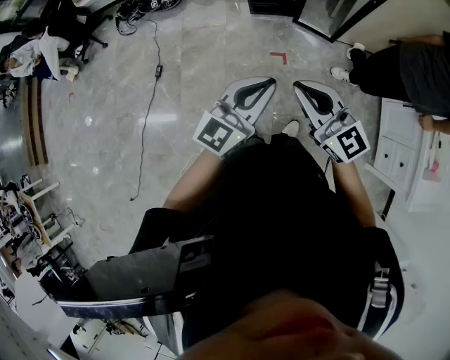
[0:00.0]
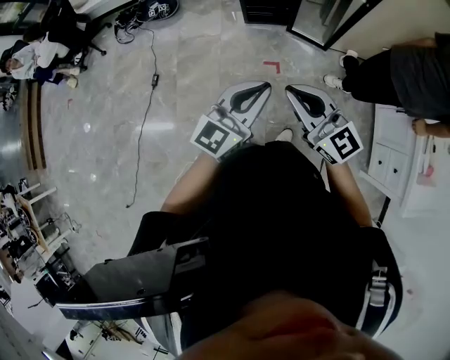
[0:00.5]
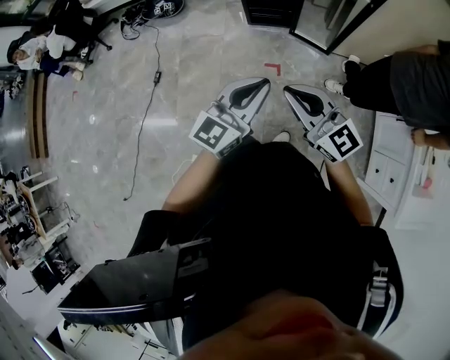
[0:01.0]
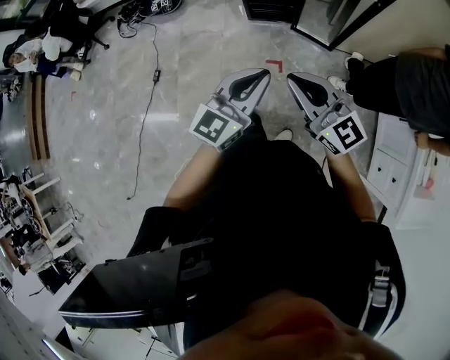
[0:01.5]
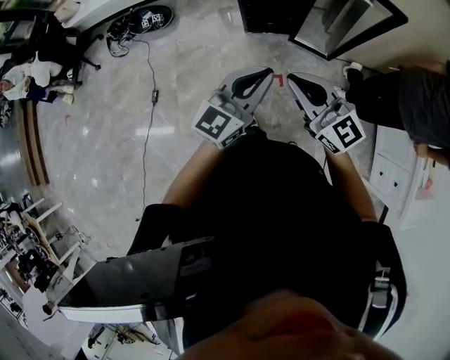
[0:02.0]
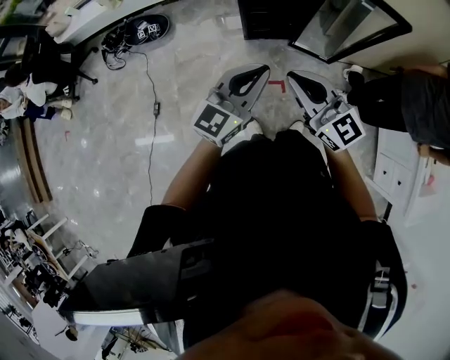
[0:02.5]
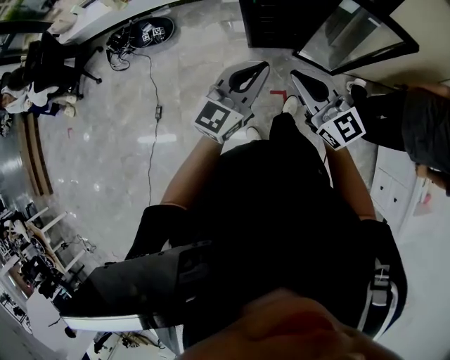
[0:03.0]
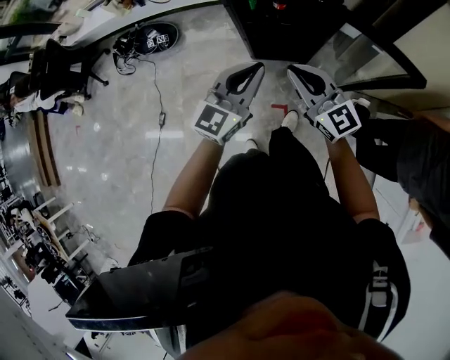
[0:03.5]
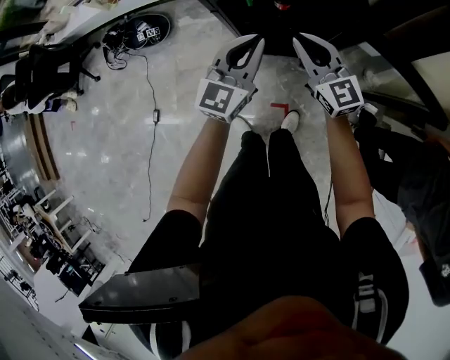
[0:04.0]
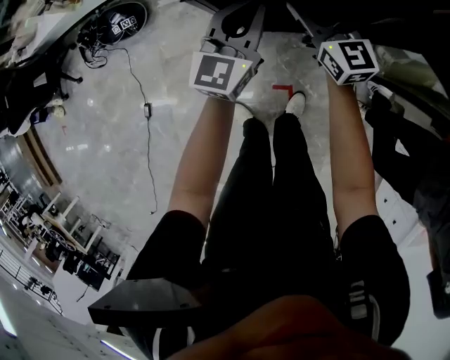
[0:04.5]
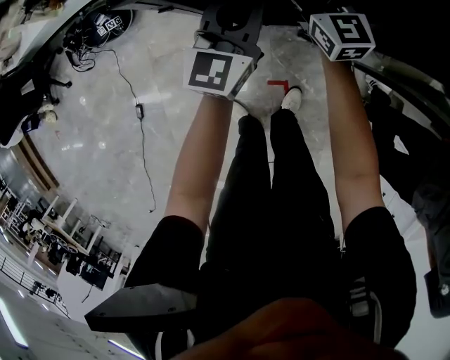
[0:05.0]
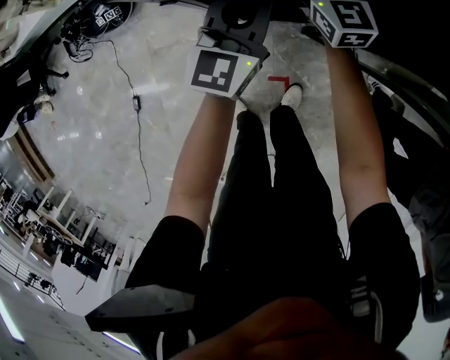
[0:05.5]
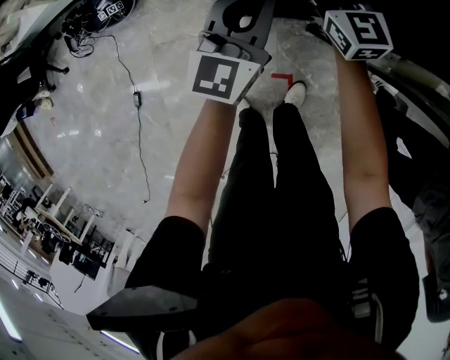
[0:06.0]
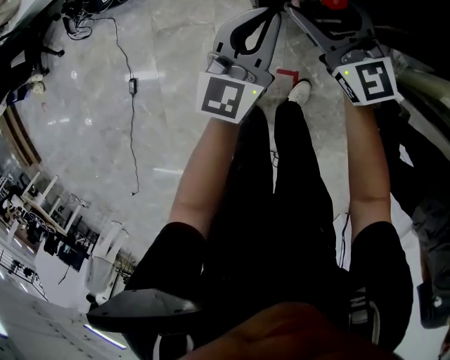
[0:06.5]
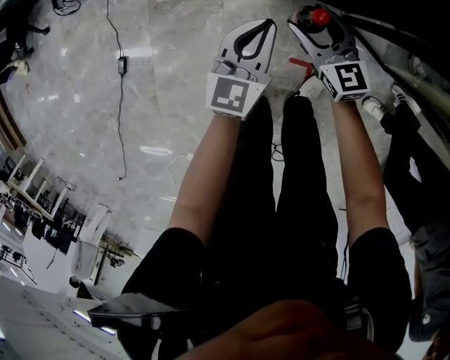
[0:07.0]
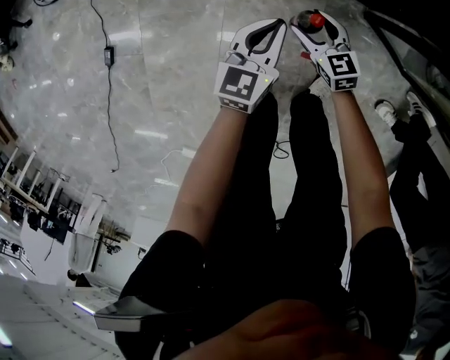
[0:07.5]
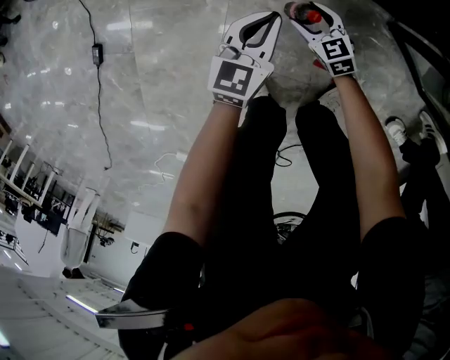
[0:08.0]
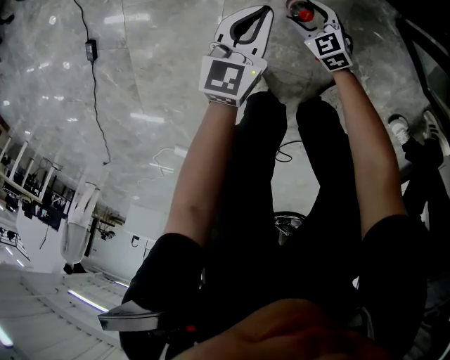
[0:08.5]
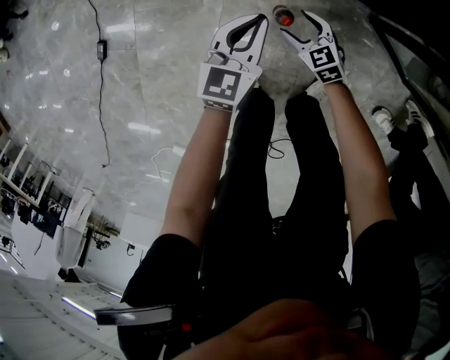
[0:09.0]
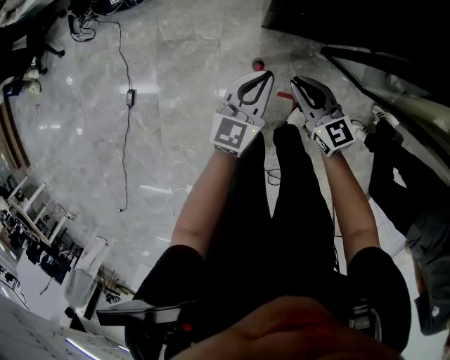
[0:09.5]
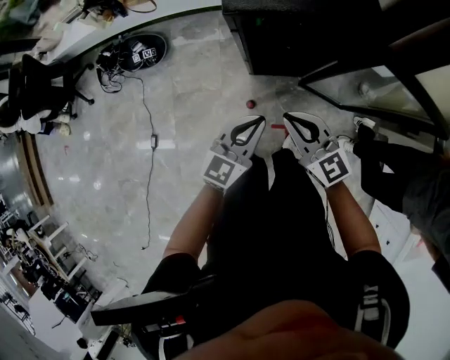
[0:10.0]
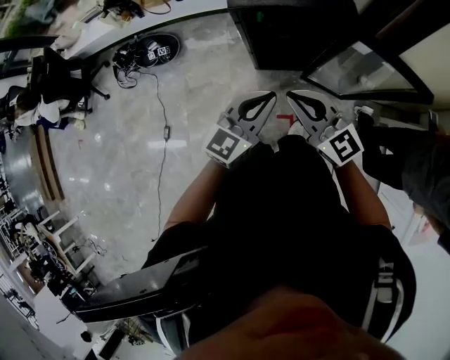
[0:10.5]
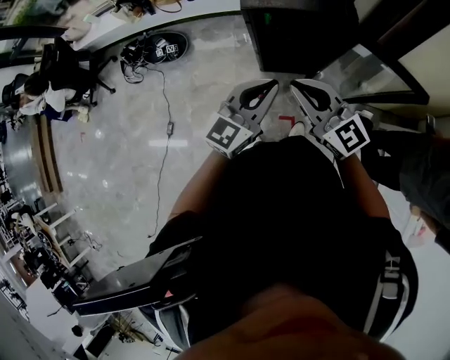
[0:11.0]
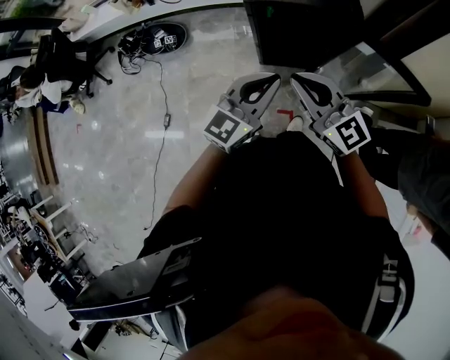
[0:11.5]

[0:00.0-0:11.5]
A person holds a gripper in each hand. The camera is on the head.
0:00.0 to 0:02.0: The grippers both shift forward by about 20 cm.
0:02.0 to 0:04.0: The two grippers travel together, forward, about 50 cm.
0:04.0 to 0:06.0: The left gripper goes approximately 15 cm downward and forward; the right gripper goes some 20 cm forward and downward, and opens.
0:06.0 to 0:07.5: The right gripper moves downward and backward, some 50 cm, and changes its angle by some 30 degrees. The left gripper moves downward and to the left, some 40 cm, and changes its angle by roughly 30 degrees.
0:07.5 to 0:09.5: Both grippers travel together upward, roughly 25 cm. The right gripper closes.
0:09.5 to 0:11.5: The two grippers go some 50 cm upward. The left gripper changes its angle by roughly 20 degrees; the right gripper changes its angle by approximately 30 degrees.

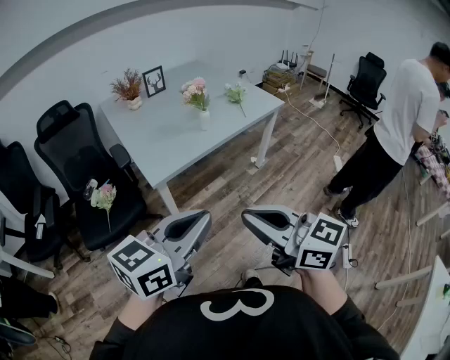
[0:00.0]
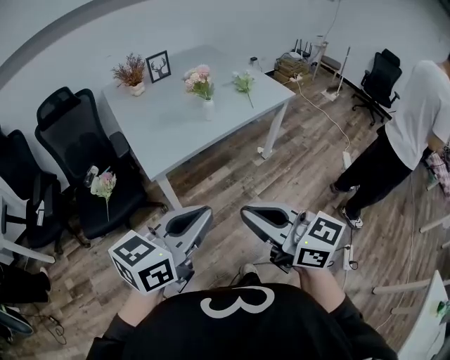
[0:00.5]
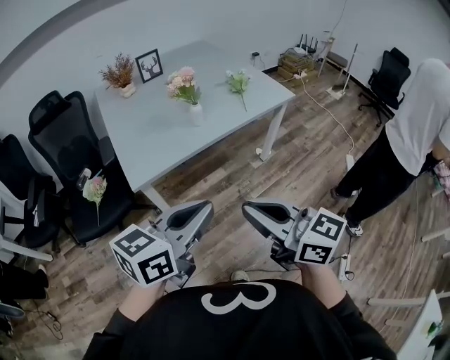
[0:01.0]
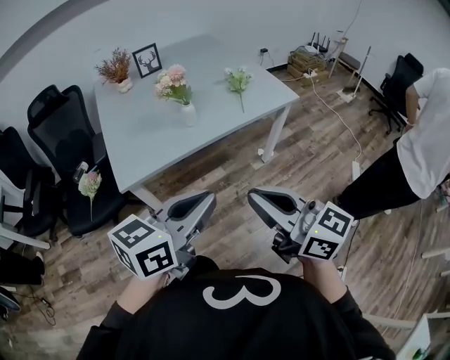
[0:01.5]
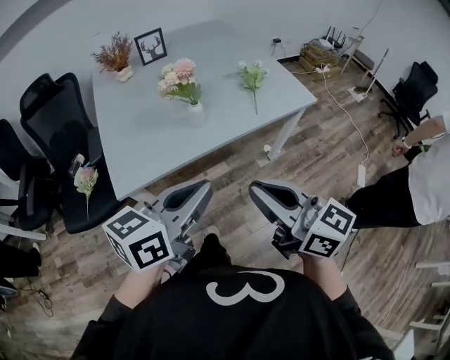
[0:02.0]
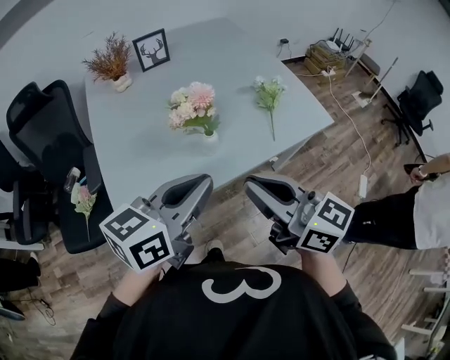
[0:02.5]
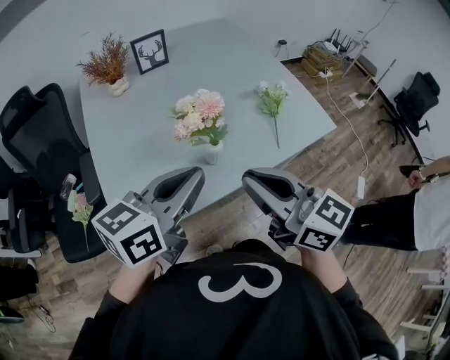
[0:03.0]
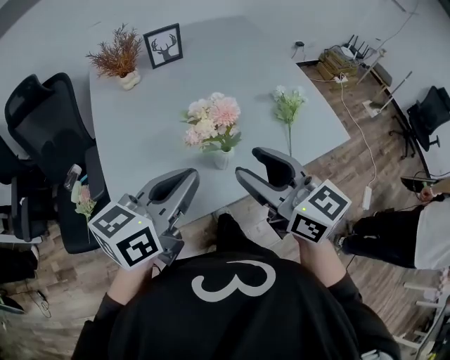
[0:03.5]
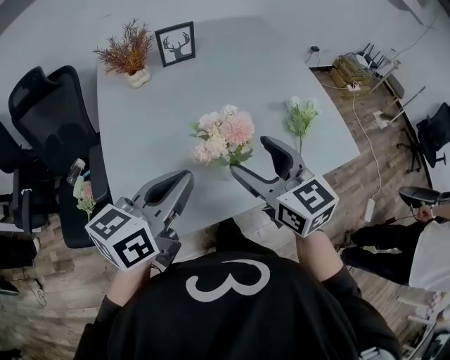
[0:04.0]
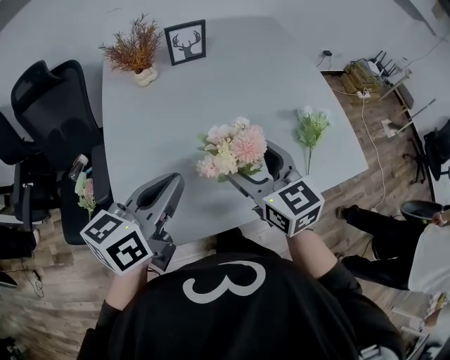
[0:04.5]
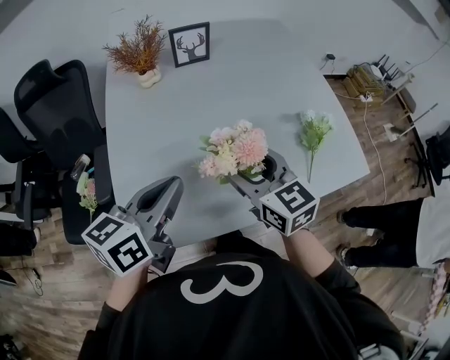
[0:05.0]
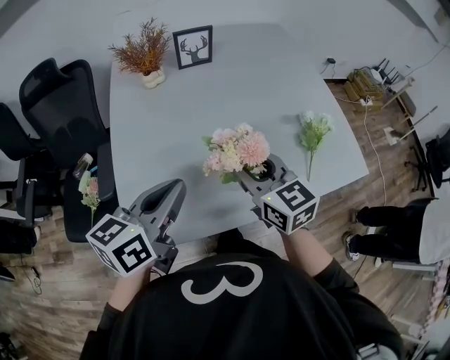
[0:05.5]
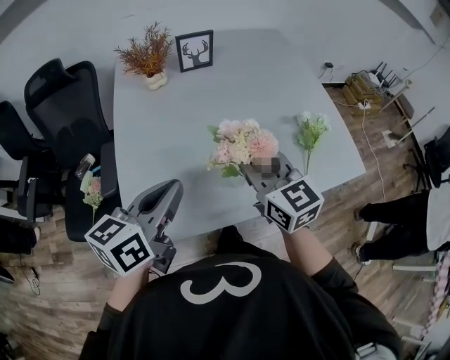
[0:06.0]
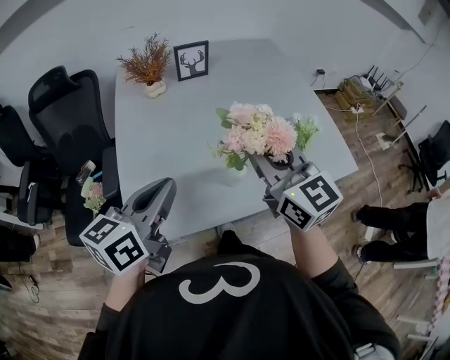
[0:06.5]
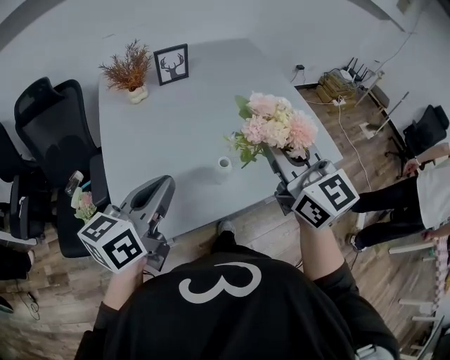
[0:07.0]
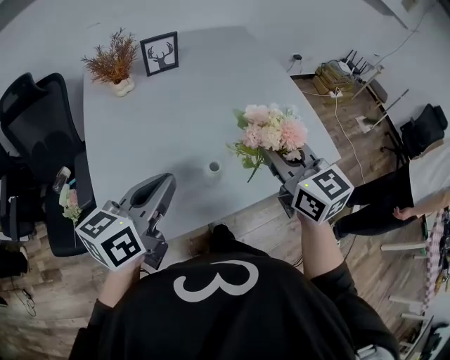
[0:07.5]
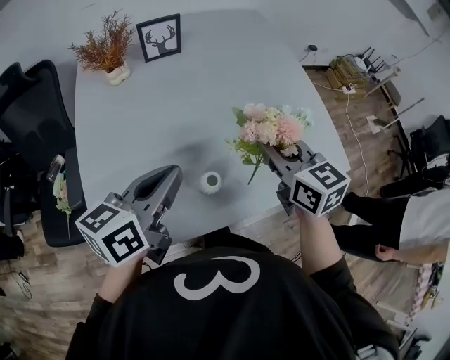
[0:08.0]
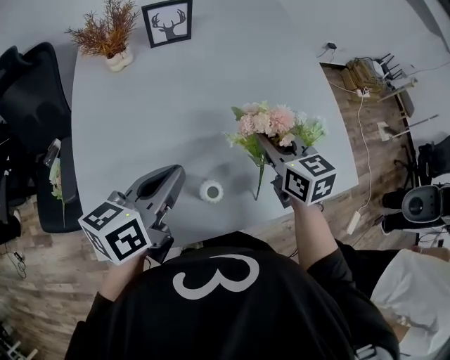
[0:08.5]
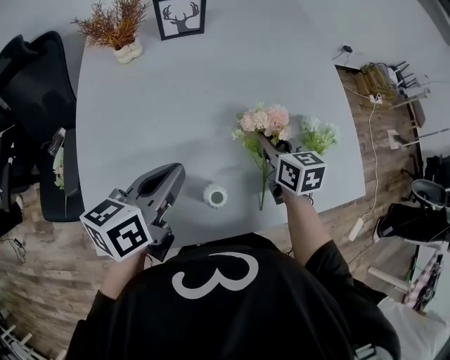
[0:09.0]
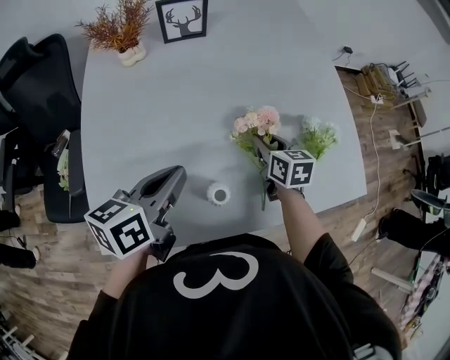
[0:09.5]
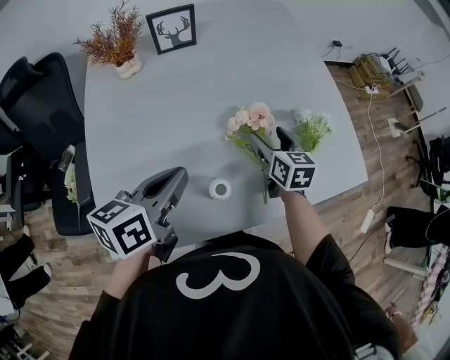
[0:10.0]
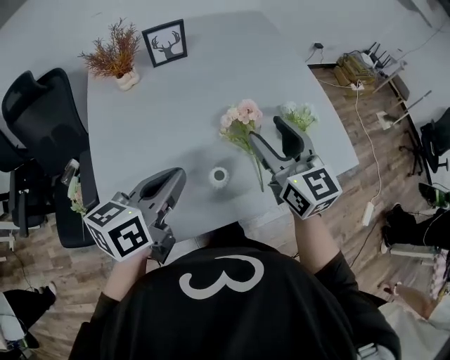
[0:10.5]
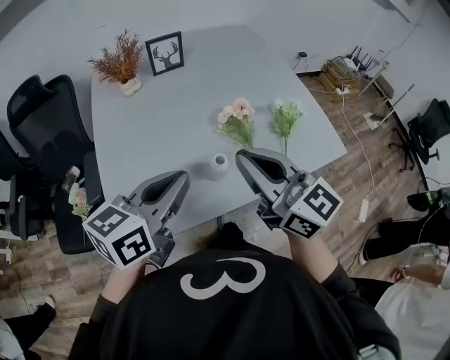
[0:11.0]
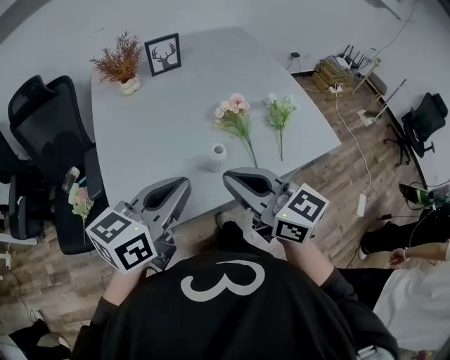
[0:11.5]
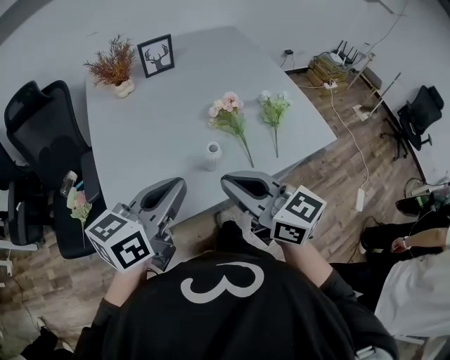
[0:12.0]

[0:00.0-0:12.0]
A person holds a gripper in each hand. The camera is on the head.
0:00.0 to 0:02.0: Both grippers move forward and to the right, about 35 cm.
0:02.0 to 0:04.0: The right gripper shifts about 35 cm forward, changes its angle by some 20 degrees, and opens its fingers, while the left gripper heads forward and to the left, covering some 30 cm.
0:04.0 to 0:06.0: The left gripper moves to the left, about 5 cm. Meanwhile the right gripper closes its fingers.
0:06.0 to 0:08.0: The left gripper goes approximately 10 cm forward and to the right; the right gripper is displaced to the right and forward by about 15 cm, and travels upward and back again, roughly 10 cm each way.
0:08.0 to 0:10.0: The left gripper changes place by some 5 cm. Meanwhile the right gripper moves downward and forward, about 20 cm, and opens.
0:10.0 to 0:12.0: The right gripper shifts roughly 35 cm backward and upward, swivels roughly 30 degrees, and closes. The left gripper shifts about 20 cm backward and upward.

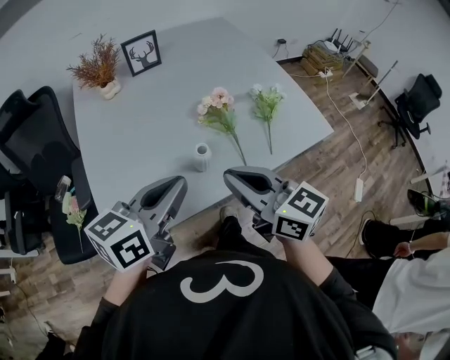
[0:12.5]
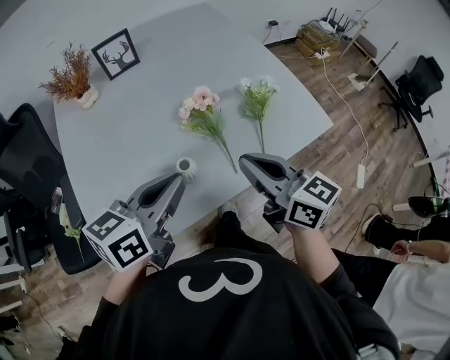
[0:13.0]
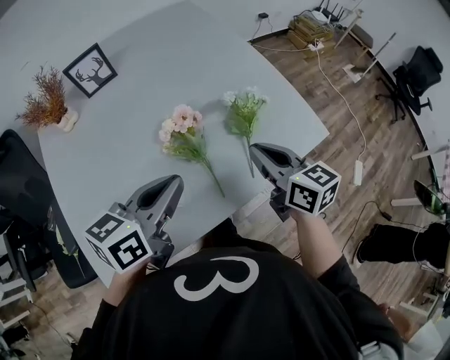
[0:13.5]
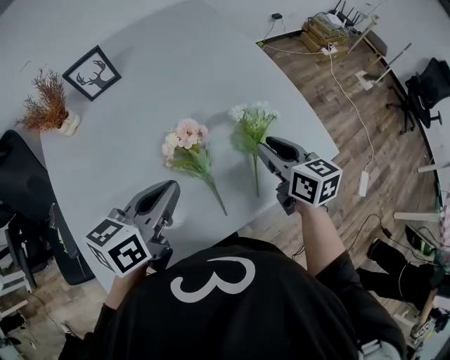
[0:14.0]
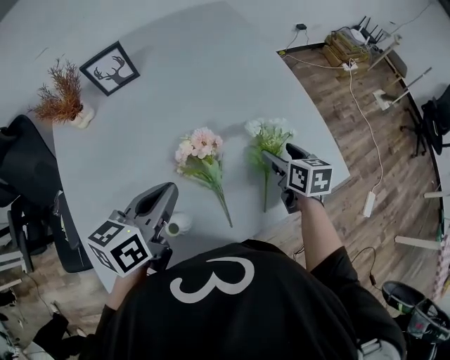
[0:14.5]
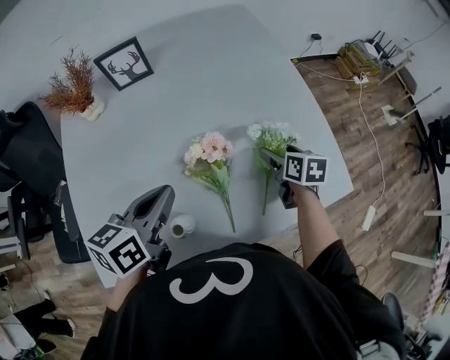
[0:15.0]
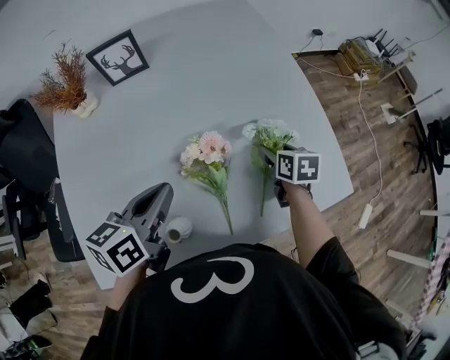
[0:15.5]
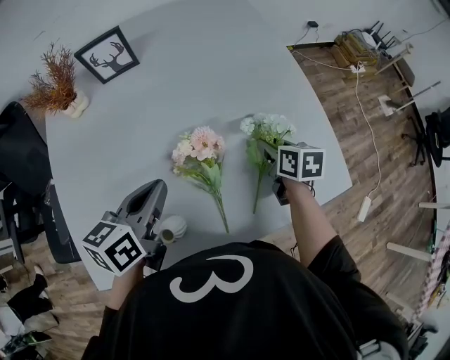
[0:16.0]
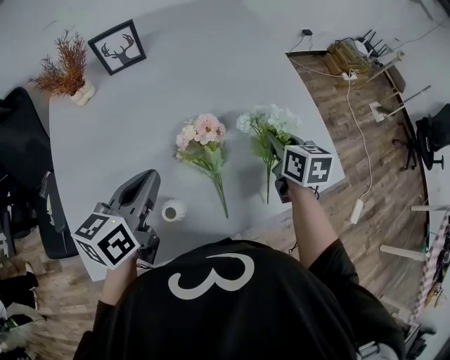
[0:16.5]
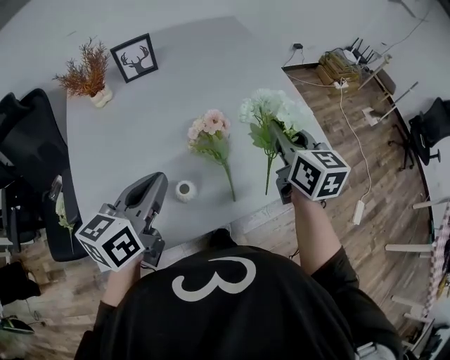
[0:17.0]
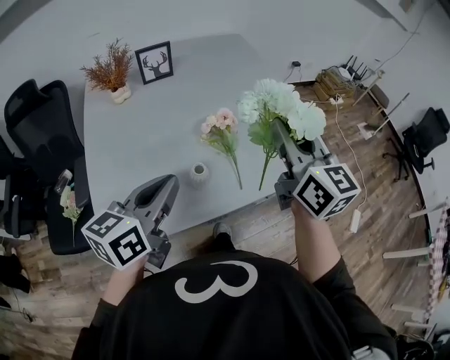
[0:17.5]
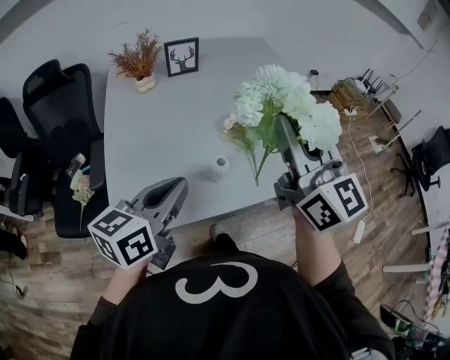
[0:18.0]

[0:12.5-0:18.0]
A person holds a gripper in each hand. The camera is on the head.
0:12.5 to 0:14.5: The right gripper moves forward, to the right and downward, approximately 40 cm, angles its fingers downward, by about 30 degrees, and opens up. The left gripper heads forward, covering roughly 20 cm.
0:14.5 to 0:16.0: The right gripper changes place by approximately 5 cm, and closes up.
0:16.0 to 0:18.0: The left gripper moves backward and upward, some 25 cm; the right gripper moves upward, backward and to the left, some 50 cm, and angles its fingers upward, by about 60 degrees.
